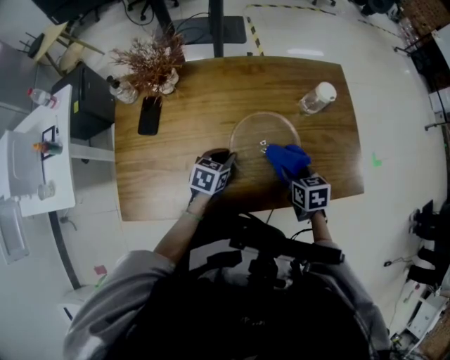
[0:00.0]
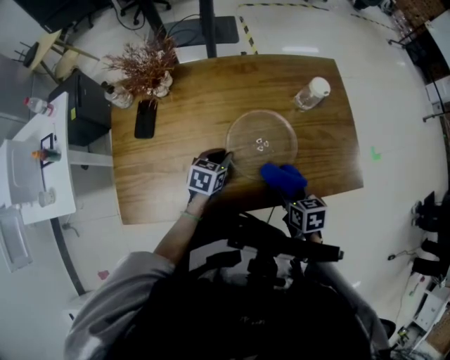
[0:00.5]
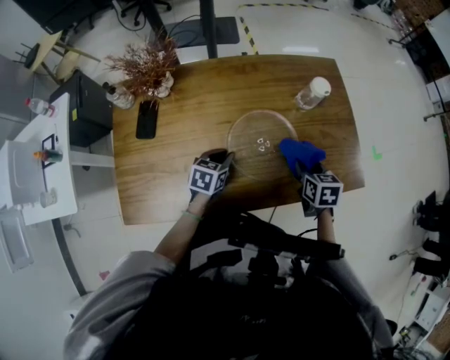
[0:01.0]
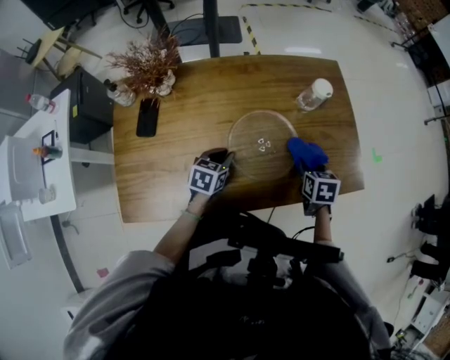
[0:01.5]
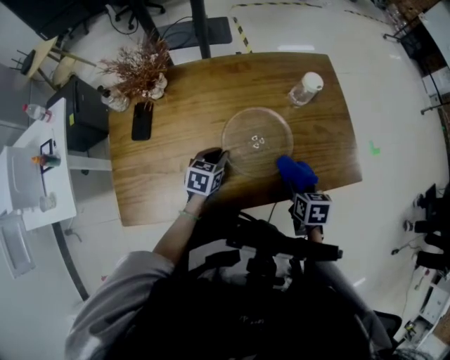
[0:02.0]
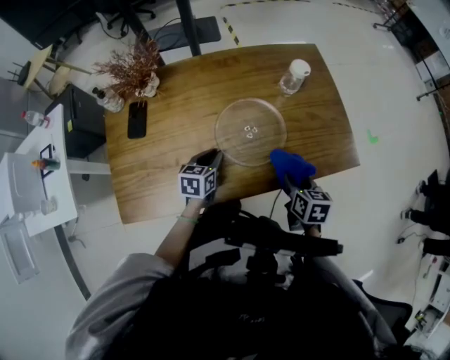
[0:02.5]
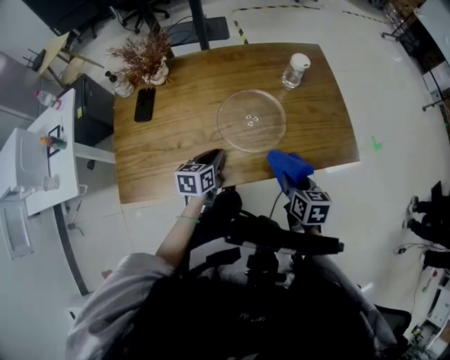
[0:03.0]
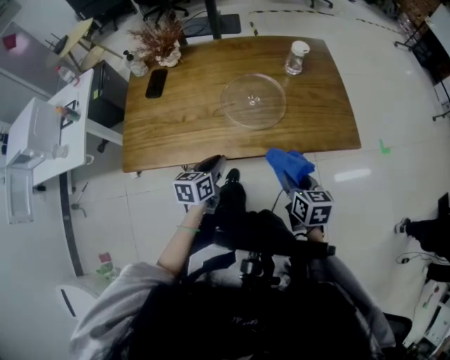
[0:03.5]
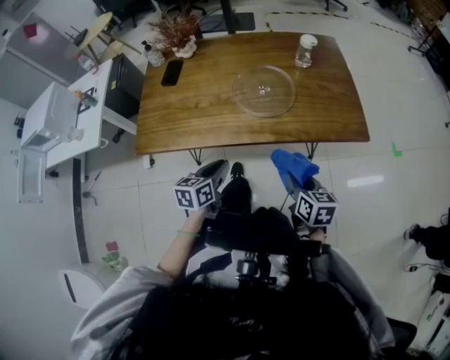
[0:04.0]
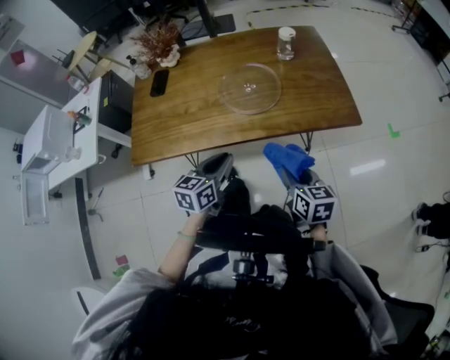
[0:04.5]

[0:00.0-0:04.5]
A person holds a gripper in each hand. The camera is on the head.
0:00.0 to 0:02.0: The right gripper moves forward and backward over some 10 cm, changing direction 2 times.
0:02.0 to 0:04.5: Both grippers travel together backward, approximately 25 cm. The left gripper turns by about 20 degrees. Meanwhile the right gripper swivels about 30 degrees.

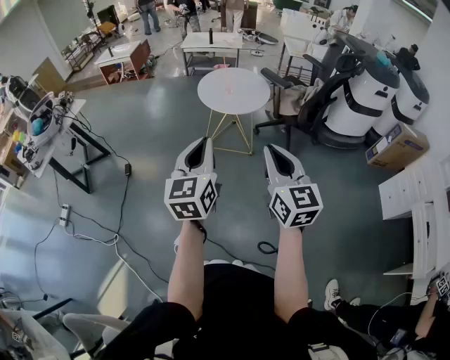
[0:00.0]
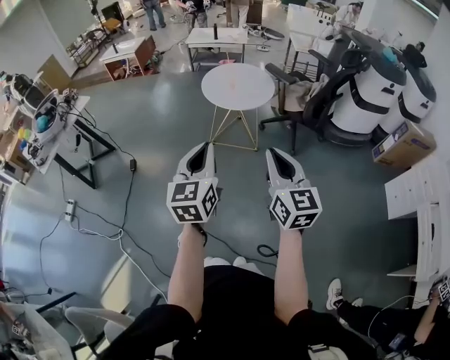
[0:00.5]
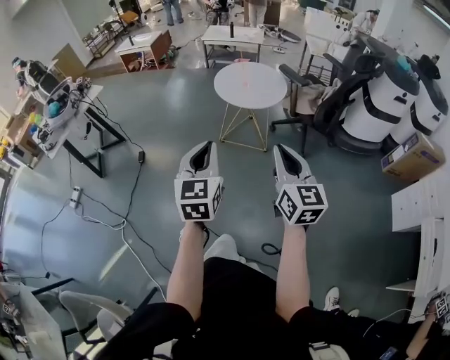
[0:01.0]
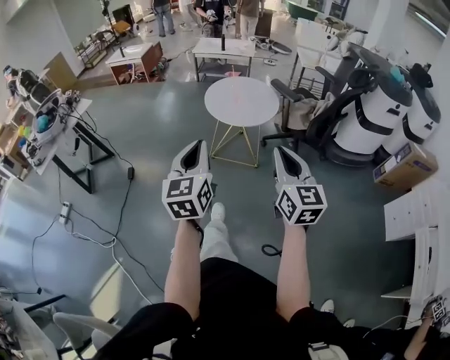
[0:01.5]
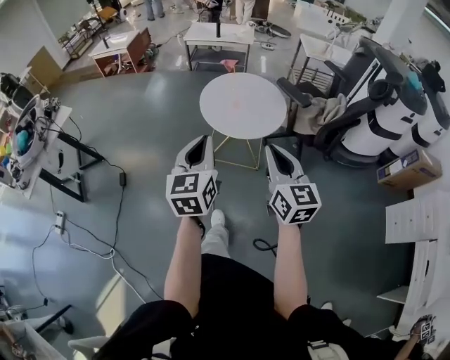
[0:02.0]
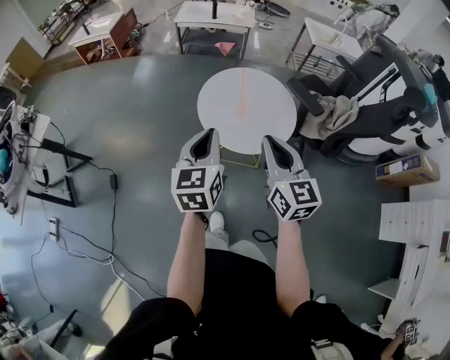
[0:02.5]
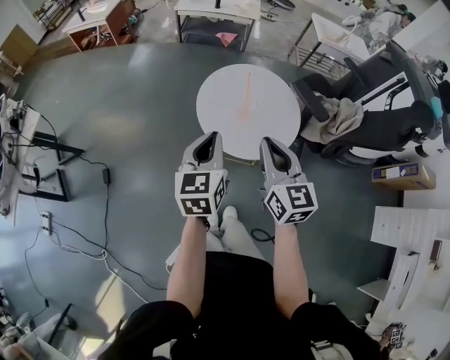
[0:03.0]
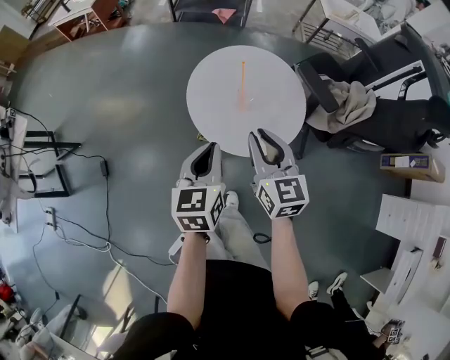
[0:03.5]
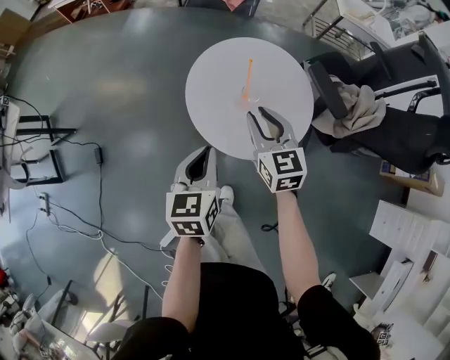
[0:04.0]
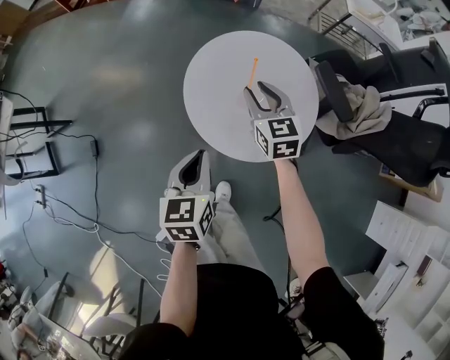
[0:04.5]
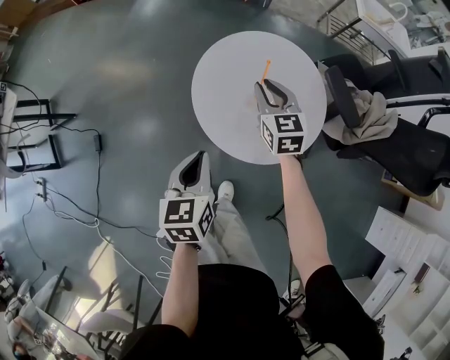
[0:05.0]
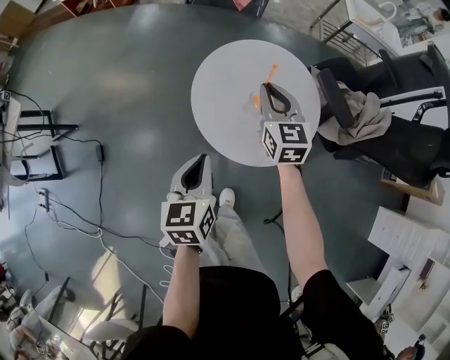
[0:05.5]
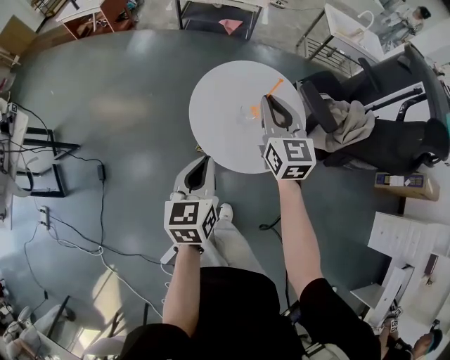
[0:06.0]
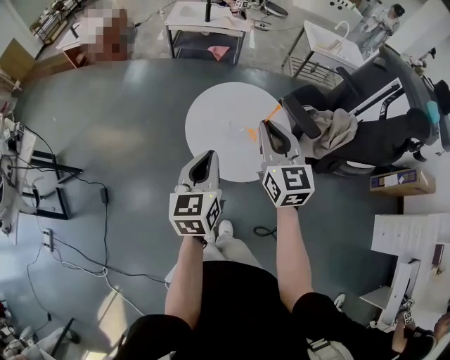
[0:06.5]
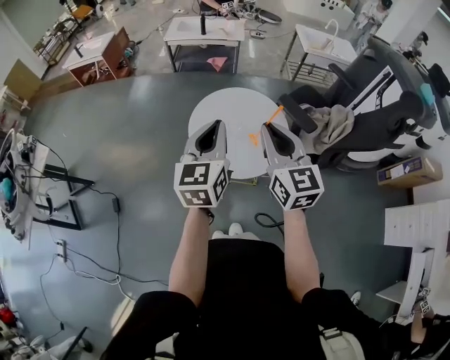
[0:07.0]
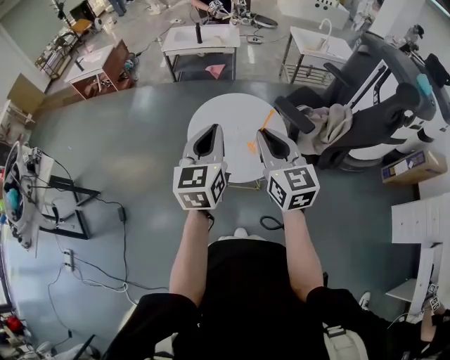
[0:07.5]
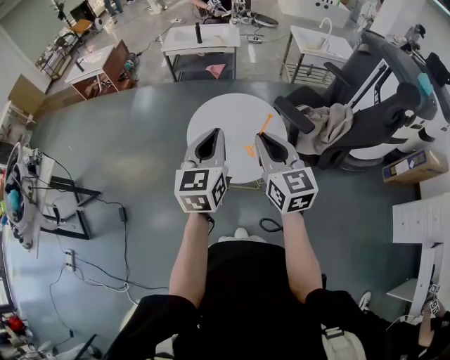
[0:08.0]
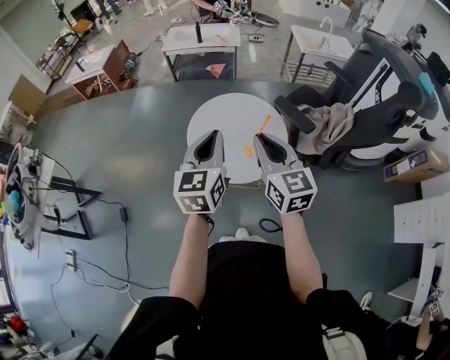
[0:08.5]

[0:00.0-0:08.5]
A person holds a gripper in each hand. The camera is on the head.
0:00.0 to 0:02.0: Both grippers travel together forward, roughly 30 cm.
0:02.0 to 0:04.0: The two grippers go roughly 35 cm forward and downward. The left gripper changes its angle by approximately 20 degrees. The right gripper turns by about 20 degrees, and opens up.
0:04.0 to 0:06.5: Both grippers move upward, some 15 cm.
0:06.5 to 0:08.5: The right gripper heads backward, covering about 5 cm. The left gripper goes about 10 cm upward and to the right.

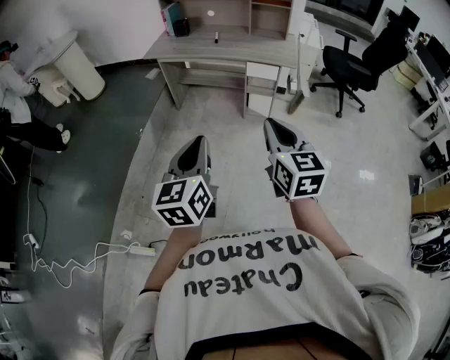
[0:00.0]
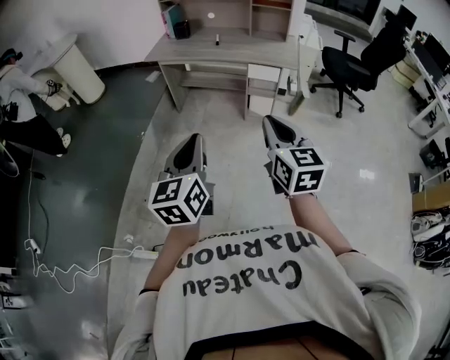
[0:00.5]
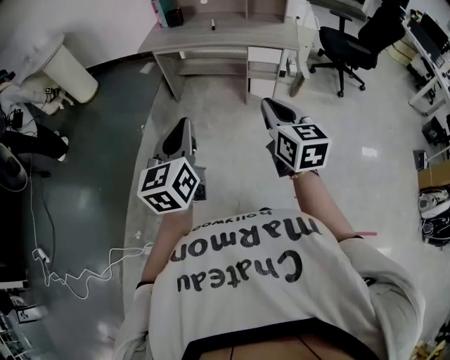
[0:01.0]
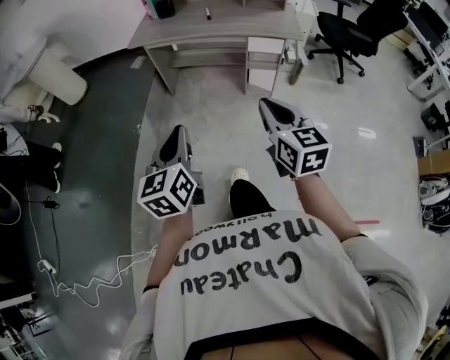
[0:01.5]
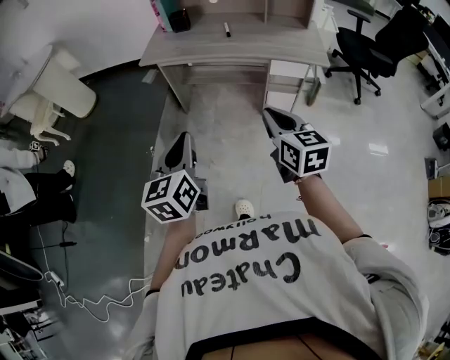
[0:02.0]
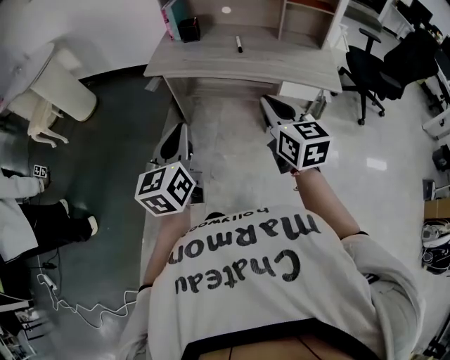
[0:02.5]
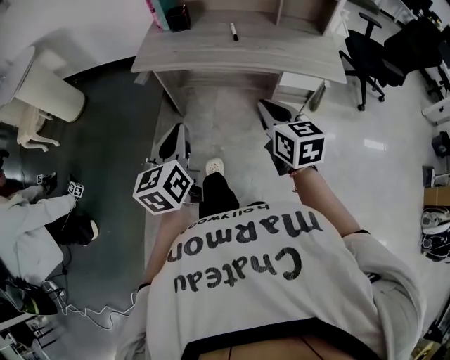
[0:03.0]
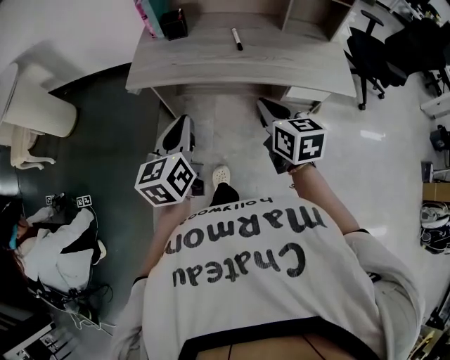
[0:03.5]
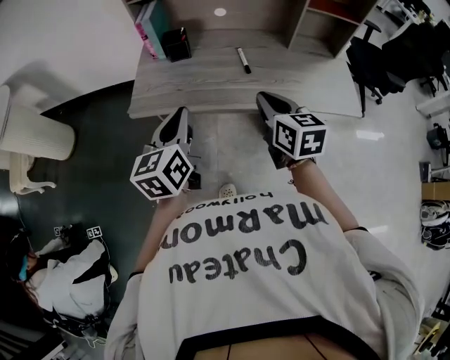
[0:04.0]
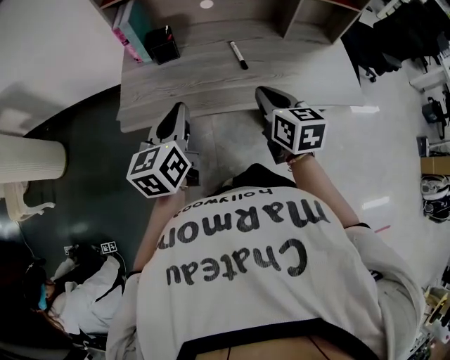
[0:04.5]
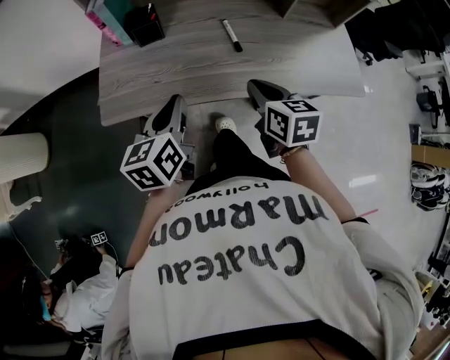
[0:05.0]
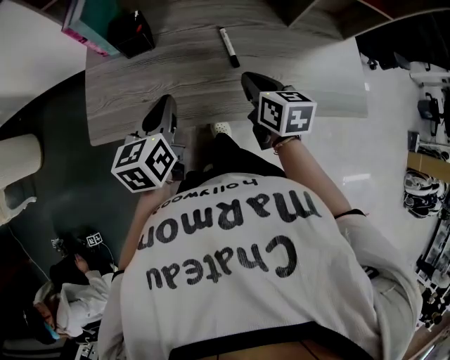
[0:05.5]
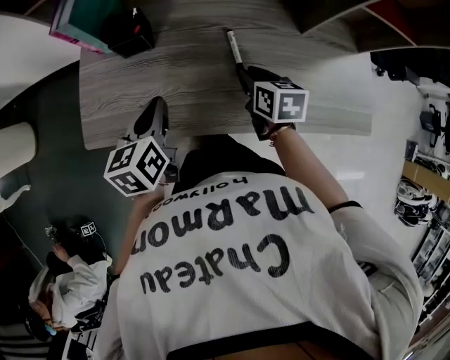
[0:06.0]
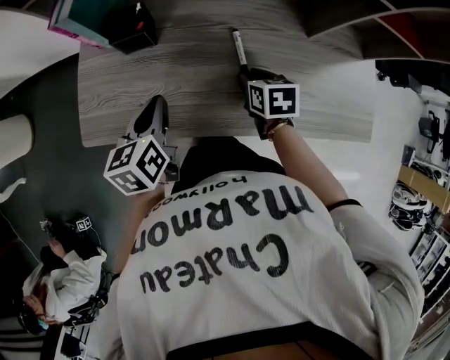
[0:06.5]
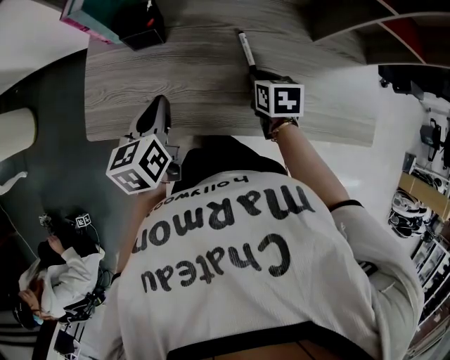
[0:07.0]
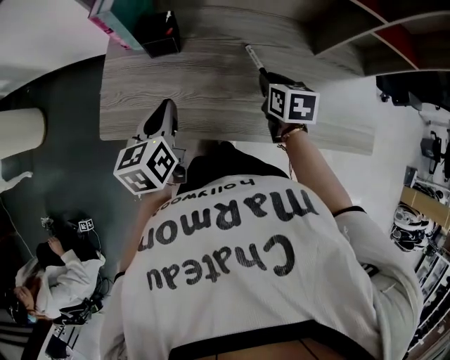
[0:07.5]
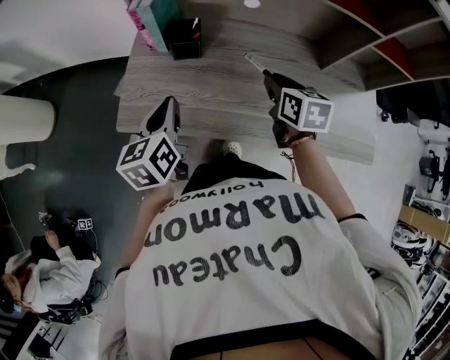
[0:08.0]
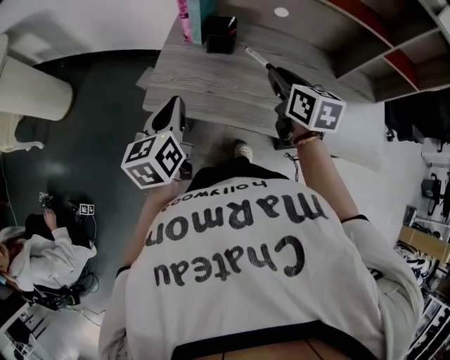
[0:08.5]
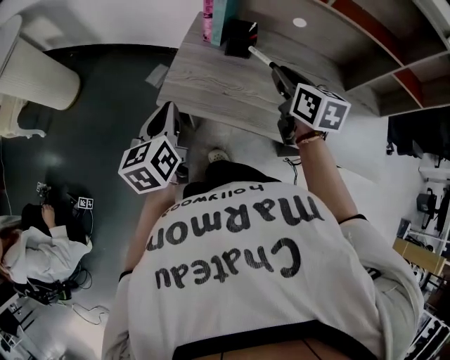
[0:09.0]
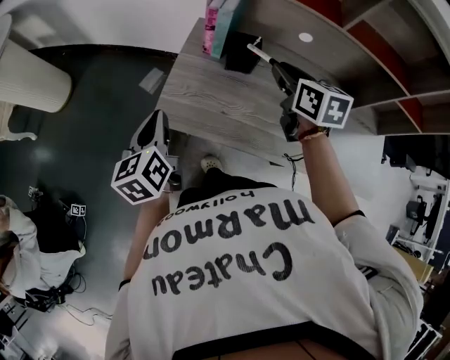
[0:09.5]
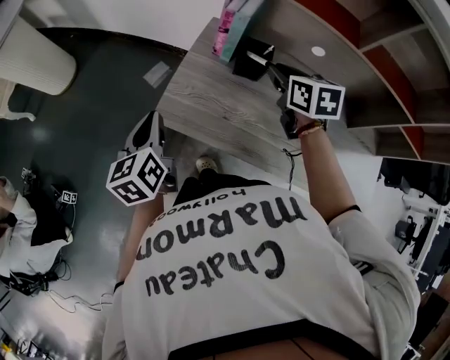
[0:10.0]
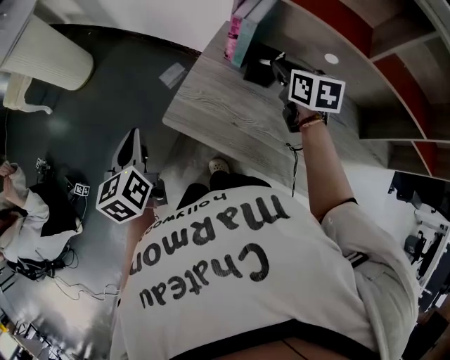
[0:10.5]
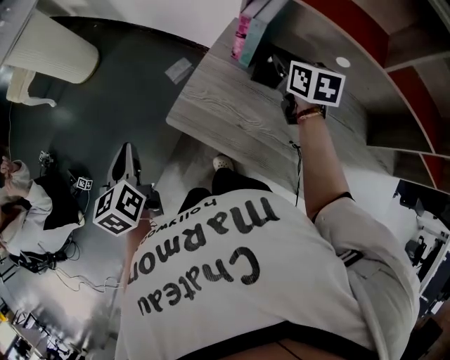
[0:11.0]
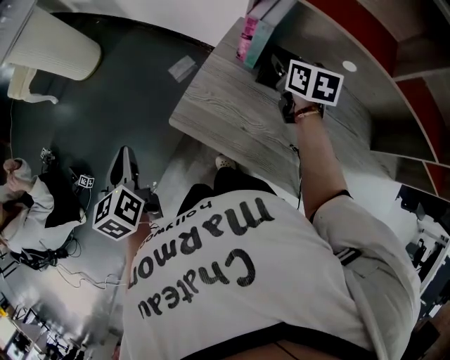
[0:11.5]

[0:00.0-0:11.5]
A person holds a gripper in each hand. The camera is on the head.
0:00.0 to 0:02.0: The grippers both shift forward and to the left by approximately 30 cm.
0:02.0 to 0:04.0: Both grippers are carried forward, roughly 40 cm.
0:04.0 to 0:06.0: The grippers both shift forward and downward by roughly 30 cm. The right gripper turns by approximately 30 degrees, and opens its fingers. The left gripper swivels approximately 20 degrees.
0:06.0 to 0:07.5: The grippers move only a little.
0:07.5 to 0:09.5: The left gripper travels to the left by some 20 cm, and rotates roughly 20 degrees, while the right gripper goes some 25 cm to the left and upward, and rotates about 20 degrees.
0:09.5 to 0:11.5: The left gripper is displaced to the left by roughly 15 cm, and turns by roughly 30 degrees. Meanwhile the right gripper goes roughly 15 cm forward and downward.

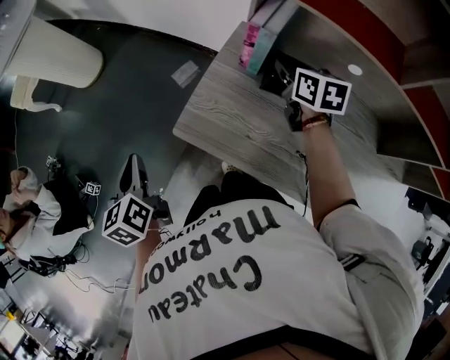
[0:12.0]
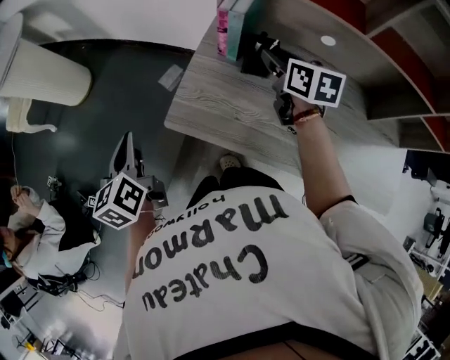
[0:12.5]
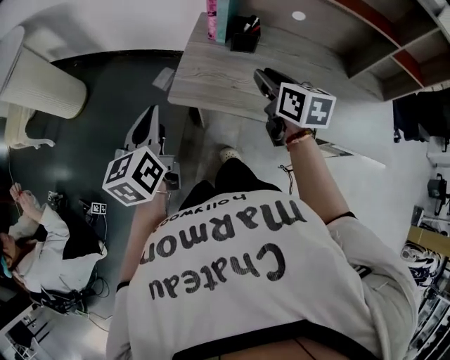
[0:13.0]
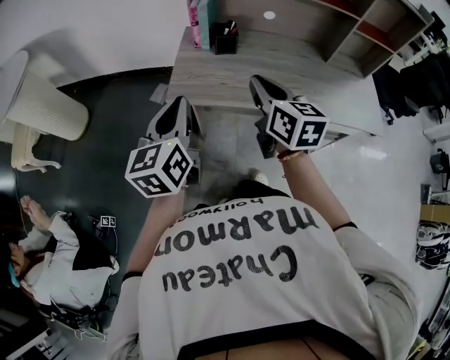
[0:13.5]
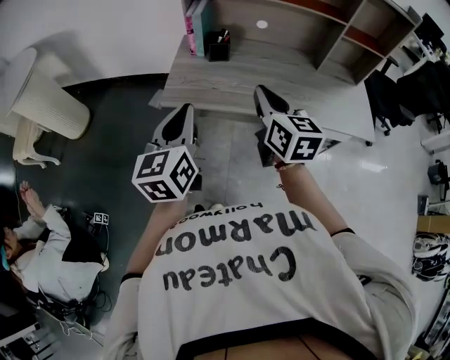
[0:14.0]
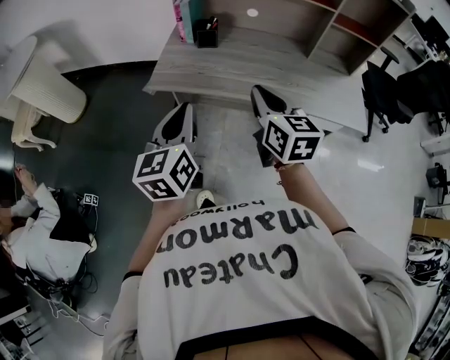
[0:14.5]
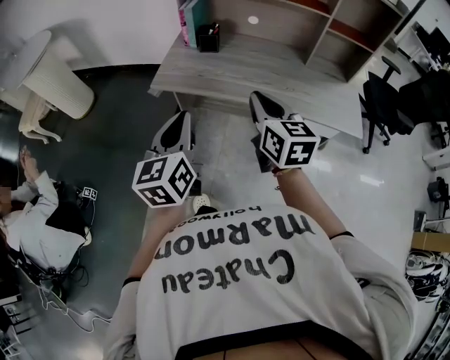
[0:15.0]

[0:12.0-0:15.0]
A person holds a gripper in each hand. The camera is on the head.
0:12.0 to 0:13.5: The left gripper shifts by approximately 20 cm, and swivels about 50 degrees; the right gripper ends up approximately 40 cm from where it was, and rotates about 30 degrees.
0:13.5 to 0:15.0: The grippers both shift backward and to the right by some 20 cm.
